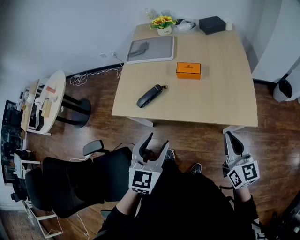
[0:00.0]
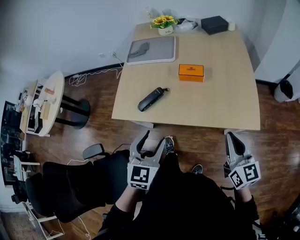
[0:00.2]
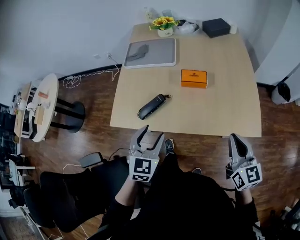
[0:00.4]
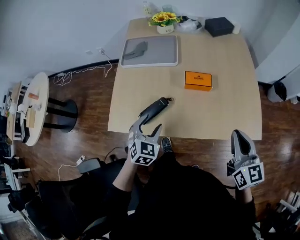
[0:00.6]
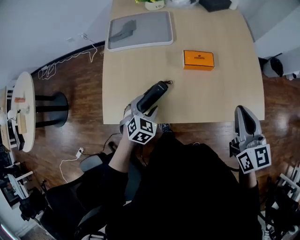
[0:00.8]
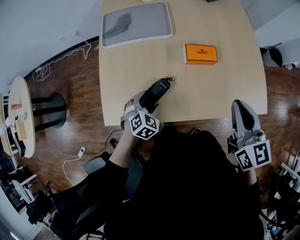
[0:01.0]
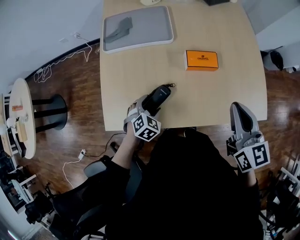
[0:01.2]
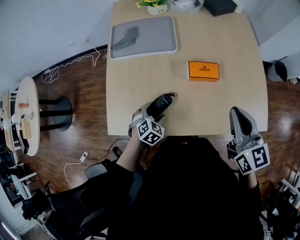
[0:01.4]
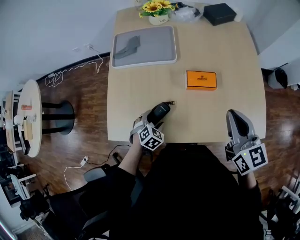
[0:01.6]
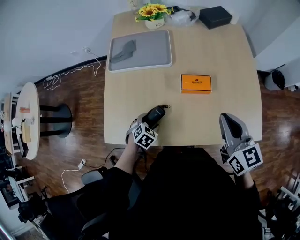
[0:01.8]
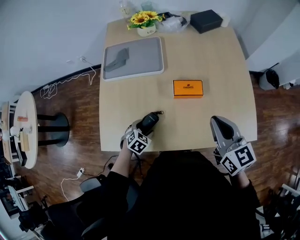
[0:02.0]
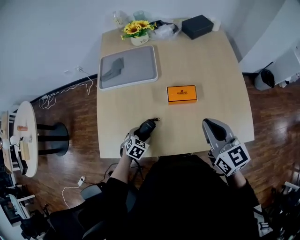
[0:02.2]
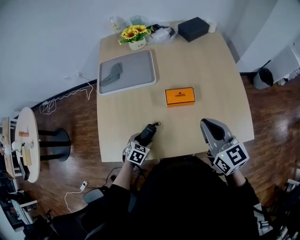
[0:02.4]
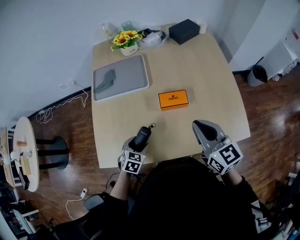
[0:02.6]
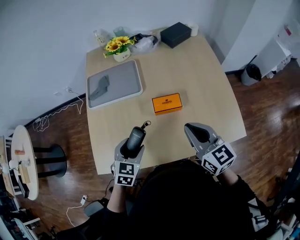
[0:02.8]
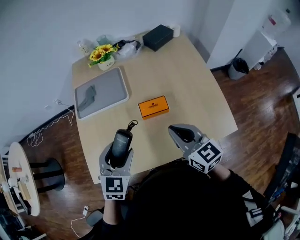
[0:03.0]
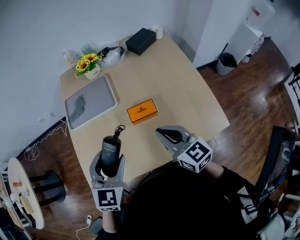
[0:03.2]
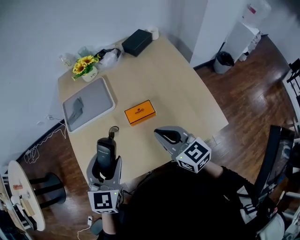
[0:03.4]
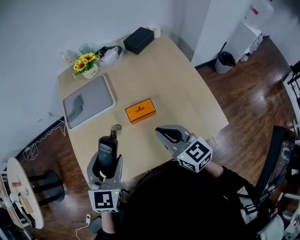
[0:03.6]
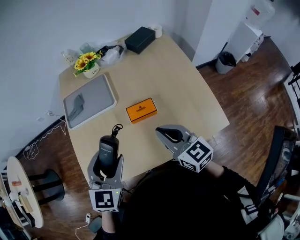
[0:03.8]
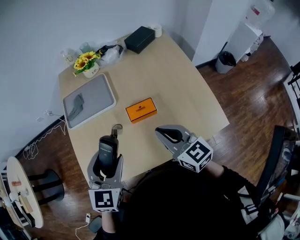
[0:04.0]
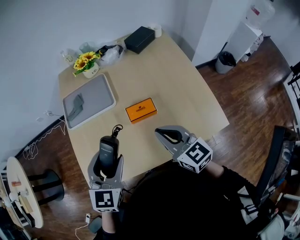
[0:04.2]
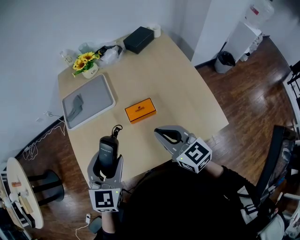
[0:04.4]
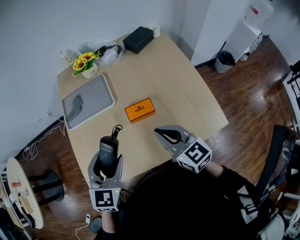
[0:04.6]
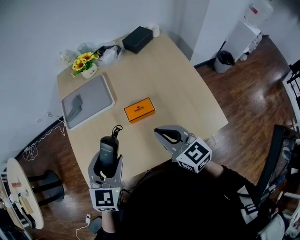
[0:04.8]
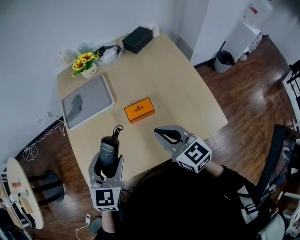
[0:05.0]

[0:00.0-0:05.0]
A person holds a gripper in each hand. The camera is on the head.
0:00.0 to 0:01.6: The left gripper moves downward, forward and to the left, roughly 40 cm, and angles its fingers downward, by some 40 degrees, while the right gripper heads forward and to the left, covering some 30 cm.
0:01.6 to 0:03.4: The left gripper is displaced upward by some 35 cm, and tips its fingers upward by roughly 40 degrees.
0:03.4 to 0:05.0: The grippers move only a little.

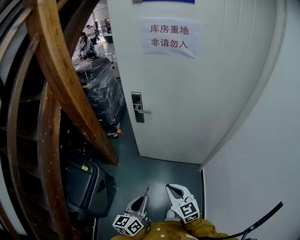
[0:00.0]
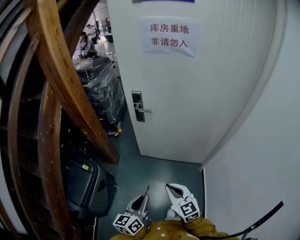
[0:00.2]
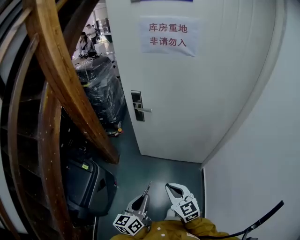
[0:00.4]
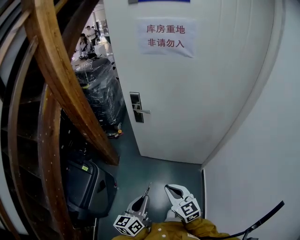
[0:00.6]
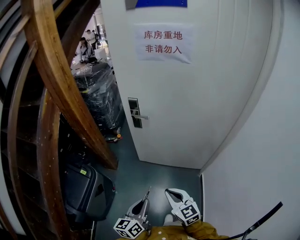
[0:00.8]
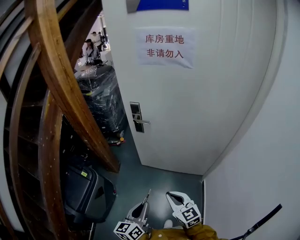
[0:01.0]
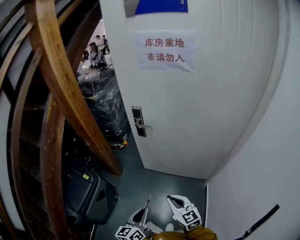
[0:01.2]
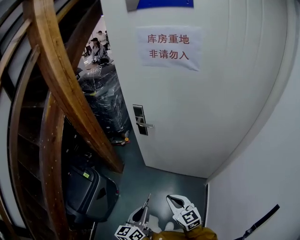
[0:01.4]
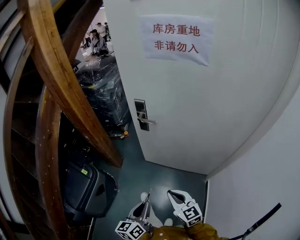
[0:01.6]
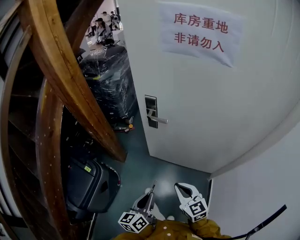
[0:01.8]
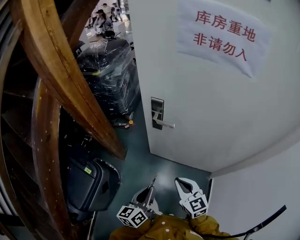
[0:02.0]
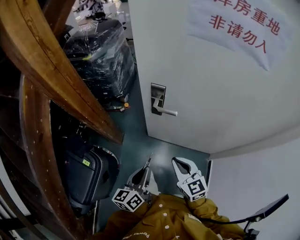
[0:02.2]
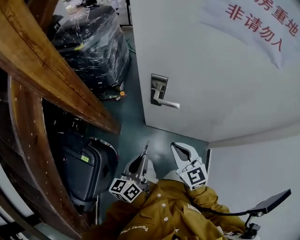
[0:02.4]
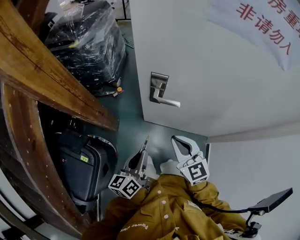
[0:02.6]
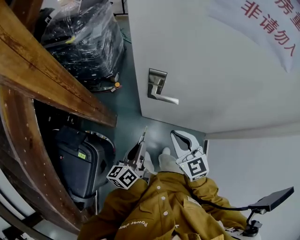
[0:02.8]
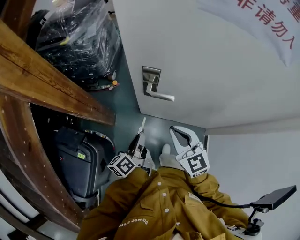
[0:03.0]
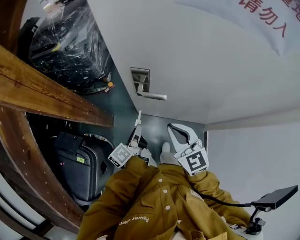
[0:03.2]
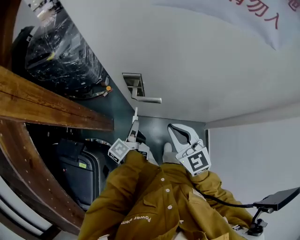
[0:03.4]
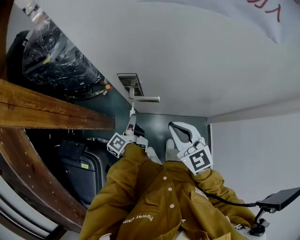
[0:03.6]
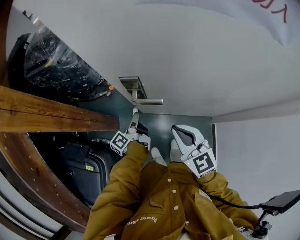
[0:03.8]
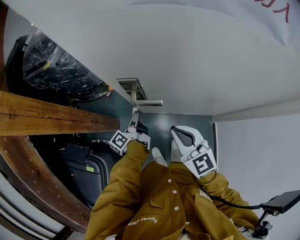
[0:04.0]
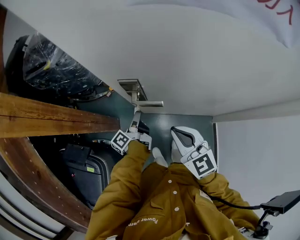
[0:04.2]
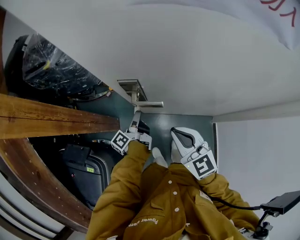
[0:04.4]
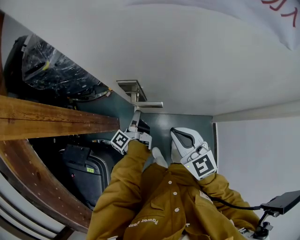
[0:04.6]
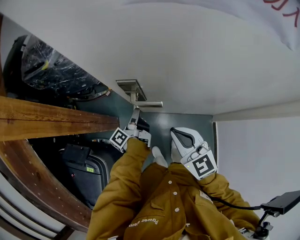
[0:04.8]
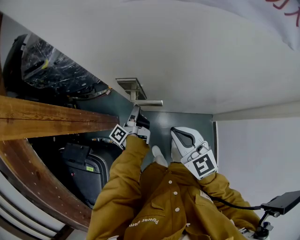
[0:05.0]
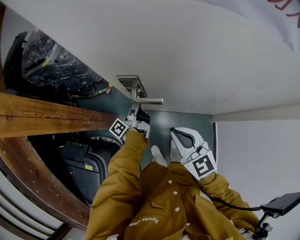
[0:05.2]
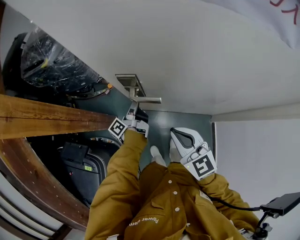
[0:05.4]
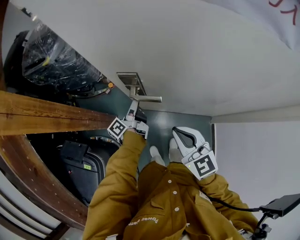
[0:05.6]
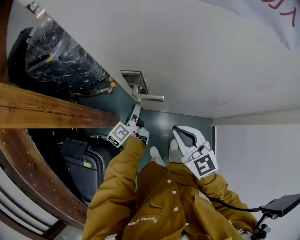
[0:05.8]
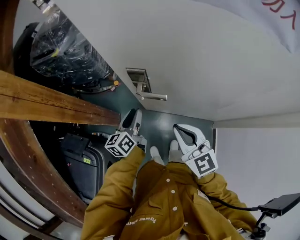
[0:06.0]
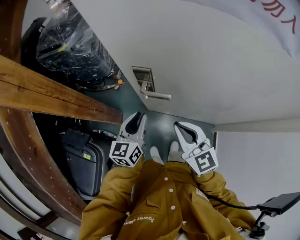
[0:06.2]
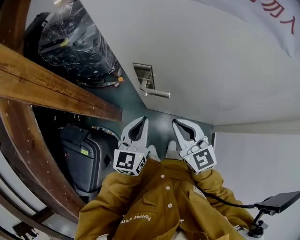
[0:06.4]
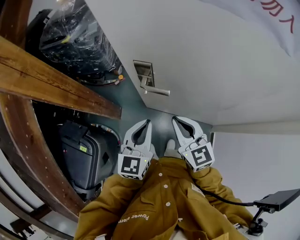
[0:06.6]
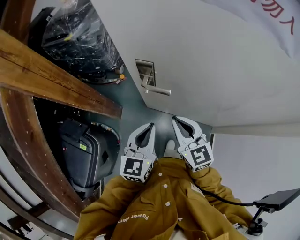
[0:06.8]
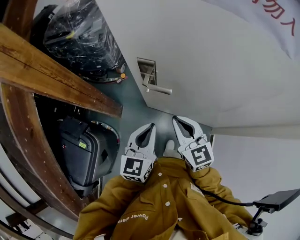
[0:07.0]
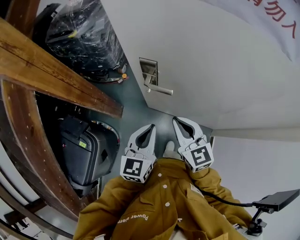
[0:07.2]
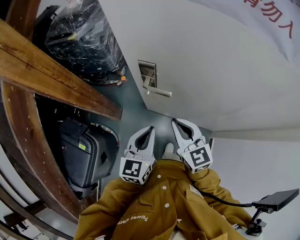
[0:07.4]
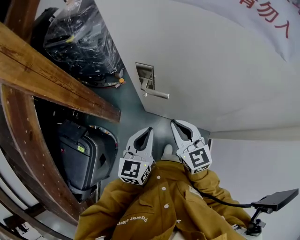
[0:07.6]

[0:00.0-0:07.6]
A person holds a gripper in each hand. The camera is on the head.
0:00.0 to 0:01.6: The two grippers go approximately 10 cm forward and to the right.
0:01.6 to 0:03.0: Both grippers travel together forward, roughly 35 cm. The left gripper changes its angle by roughly 30 degrees.
0:03.0 to 0:04.6: The left gripper travels forward by approximately 15 cm, and changes its angle by about 30 degrees.
0:04.6 to 0:06.0: The left gripper shifts by some 5 cm, twists about 50 degrees clockwise, seen from behind, and opens its fingers.
0:06.0 to 0:07.6: The left gripper shifts approximately 15 cm backward and upward, rotates roughly 30 degrees, and closes its fingers.

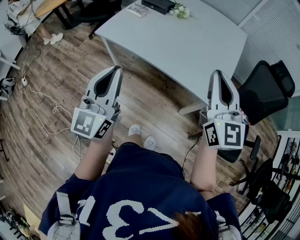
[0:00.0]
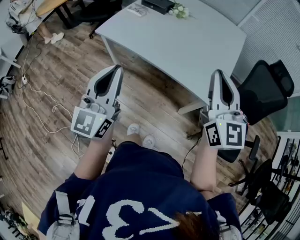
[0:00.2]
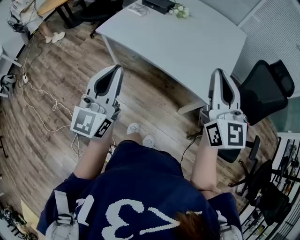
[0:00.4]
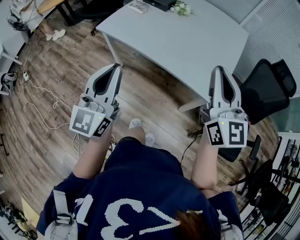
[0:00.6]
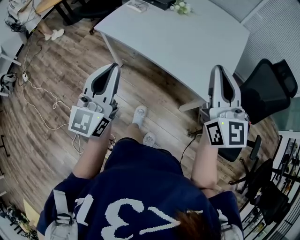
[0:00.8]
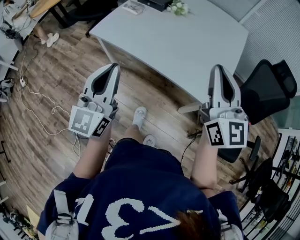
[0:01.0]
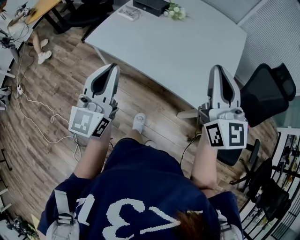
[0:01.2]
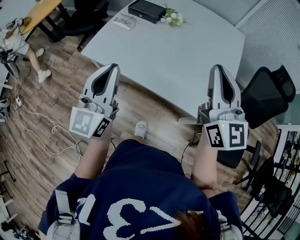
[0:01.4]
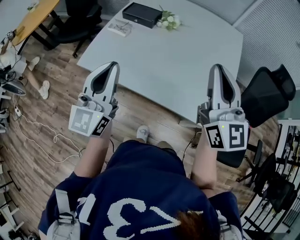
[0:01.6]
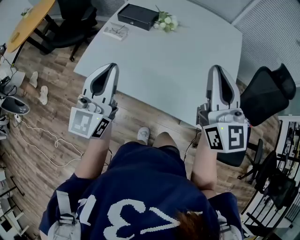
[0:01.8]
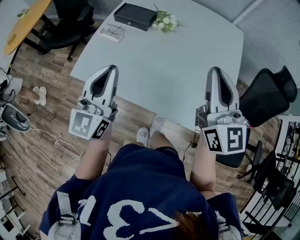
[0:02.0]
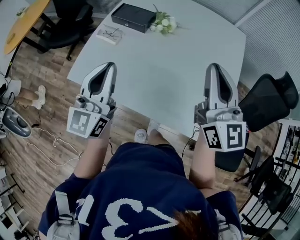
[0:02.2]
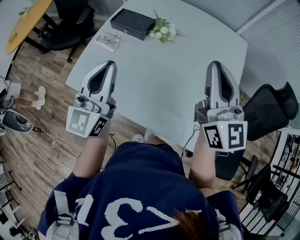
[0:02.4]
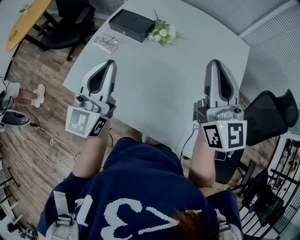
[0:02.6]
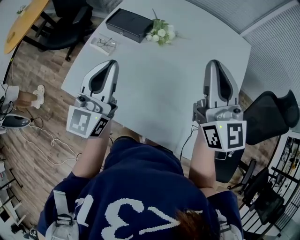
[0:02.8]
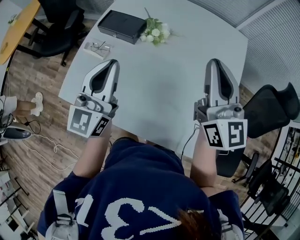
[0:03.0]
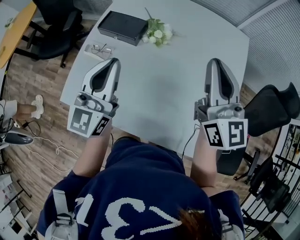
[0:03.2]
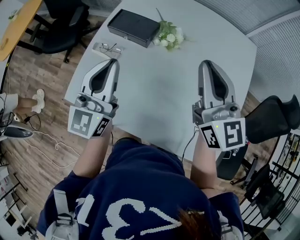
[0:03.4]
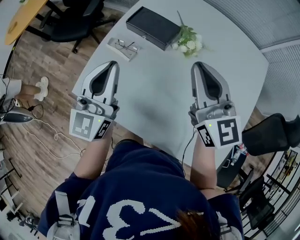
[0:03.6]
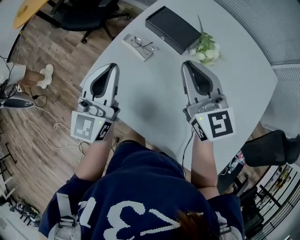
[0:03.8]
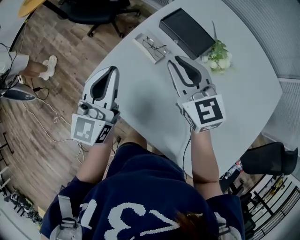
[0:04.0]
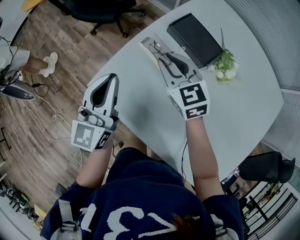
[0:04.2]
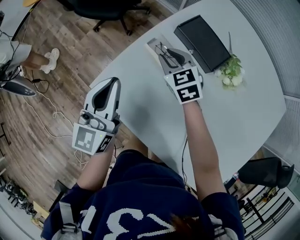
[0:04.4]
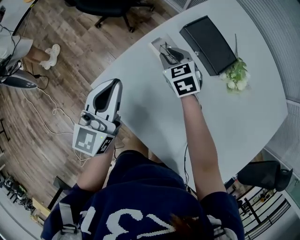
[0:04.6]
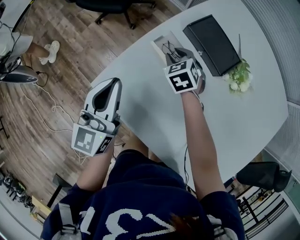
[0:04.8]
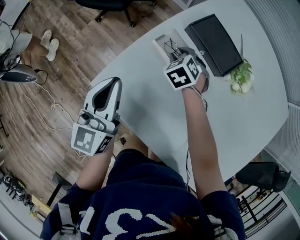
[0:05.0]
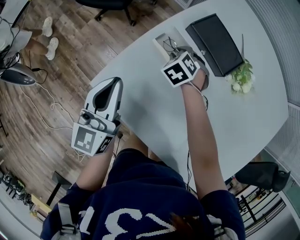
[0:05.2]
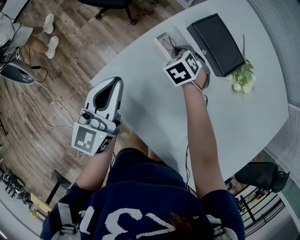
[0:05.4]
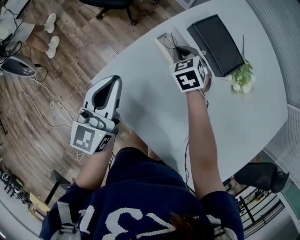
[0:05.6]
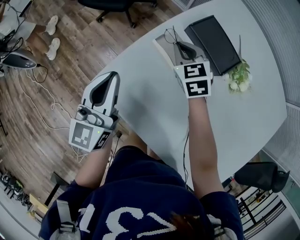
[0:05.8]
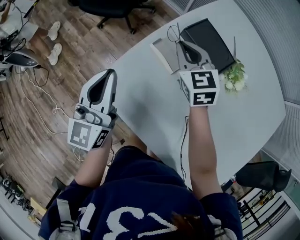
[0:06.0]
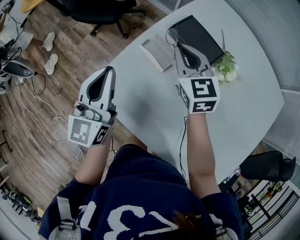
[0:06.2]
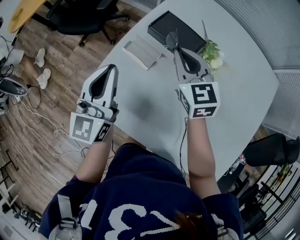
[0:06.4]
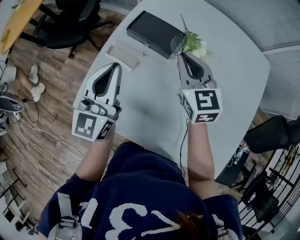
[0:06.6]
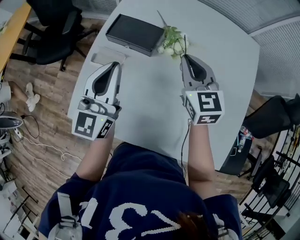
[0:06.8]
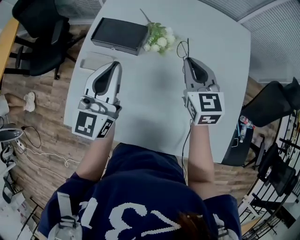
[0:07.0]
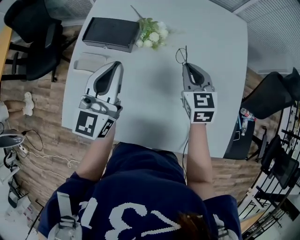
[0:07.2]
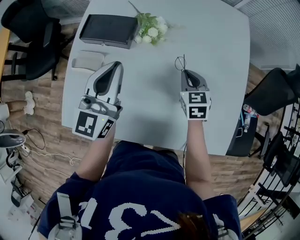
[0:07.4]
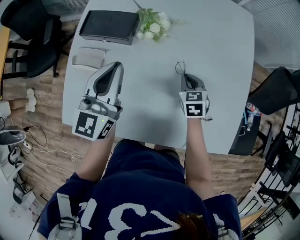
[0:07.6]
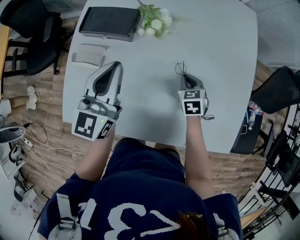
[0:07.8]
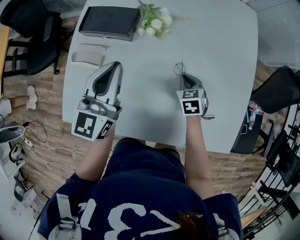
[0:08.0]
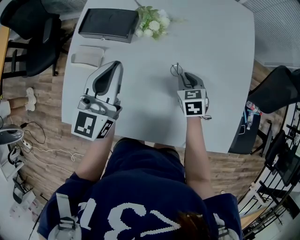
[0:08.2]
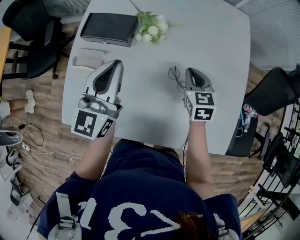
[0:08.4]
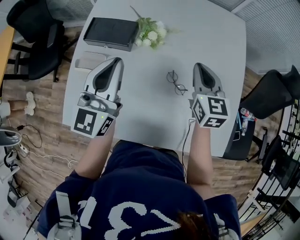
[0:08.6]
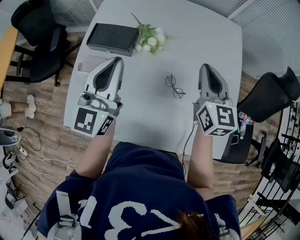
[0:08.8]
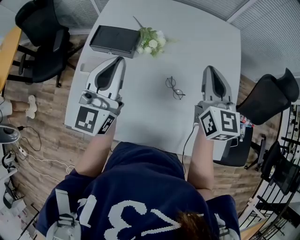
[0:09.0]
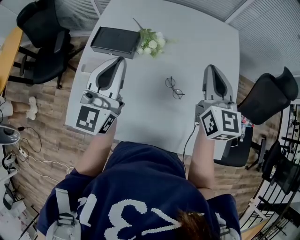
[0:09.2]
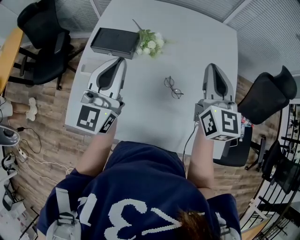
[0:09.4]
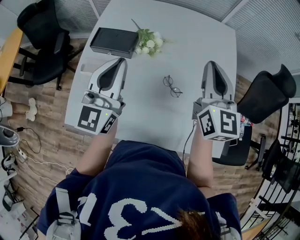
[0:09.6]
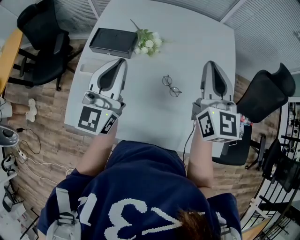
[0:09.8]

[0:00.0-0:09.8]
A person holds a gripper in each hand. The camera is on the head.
0:00.0 to 0:01.4: Both grippers travel together forward, about 15 cm.
0:01.4 to 0:02.8: Both grippers move forward, some 30 cm.
0:02.8 to 0:04.2: The right gripper ends up roughly 50 cm from where it was, and angles its fingers downward, by approximately 30 degrees. Meanwhile the left gripper ends up roughly 30 cm from where it was, and changes its angle by about 20 degrees.
0:04.2 to 0:05.6: The left gripper heads downward, covering some 5 cm, while the right gripper goes approximately 20 cm downward and forward, and turns by approximately 30 degrees.
0:05.6 to 0:07.0: The left gripper moves roughly 30 cm, and rotates approximately 30 degrees; the right gripper changes place by some 40 cm, and turns by roughly 50 degrees.
0:07.0 to 0:08.4: The left gripper shifts by roughly 5 cm. Meanwhile the right gripper moves downward and to the right, roughly 15 cm.
0:08.4 to 0:09.8: The right gripper goes roughly 25 cm upward, and tilts its fingers some 40 degrees upward. The left gripper travels upward by approximately 10 cm.

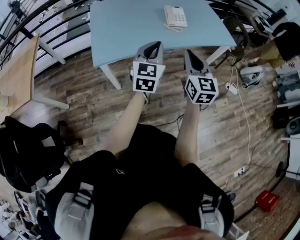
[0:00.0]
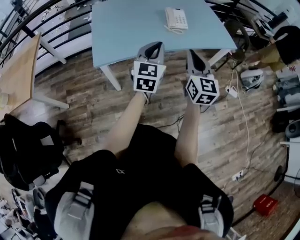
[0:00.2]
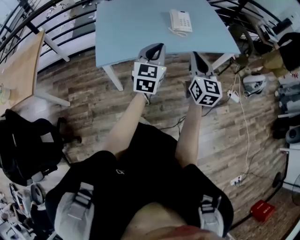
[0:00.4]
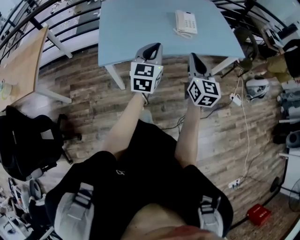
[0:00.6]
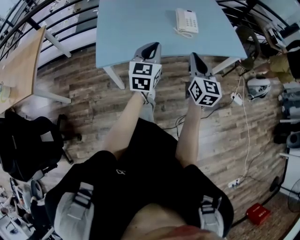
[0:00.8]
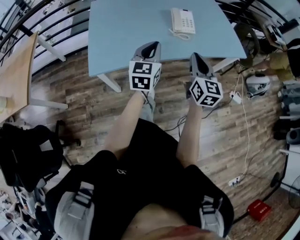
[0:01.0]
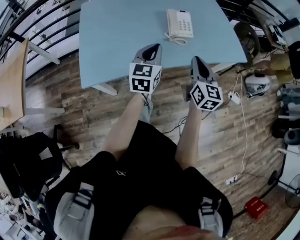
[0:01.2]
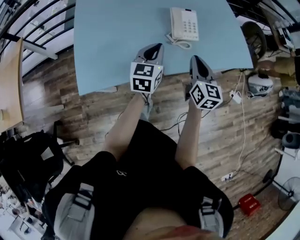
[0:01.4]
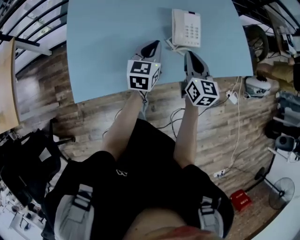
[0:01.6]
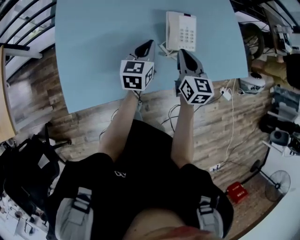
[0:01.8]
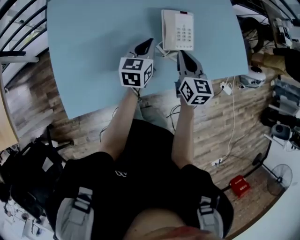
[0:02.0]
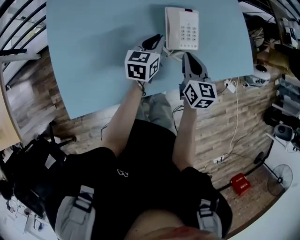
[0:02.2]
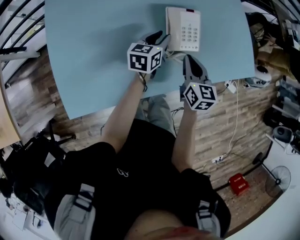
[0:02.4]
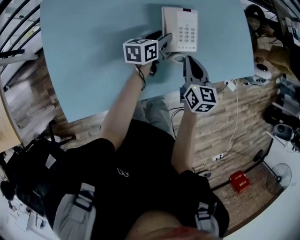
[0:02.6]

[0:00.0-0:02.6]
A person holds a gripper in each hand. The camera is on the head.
0:00.0 to 0:01.2: Both grippers travel together forward, some 20 cm.
0:01.2 to 0:02.6: Both grippers travel together forward and downward, some 35 cm. The left gripper rotates approximately 40 degrees, and opens.
